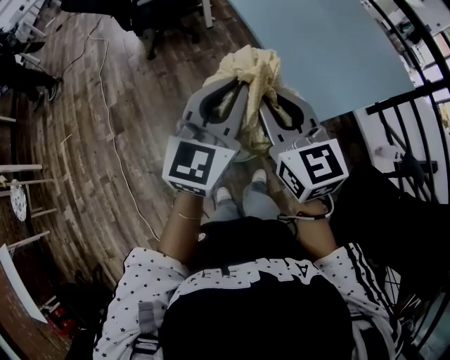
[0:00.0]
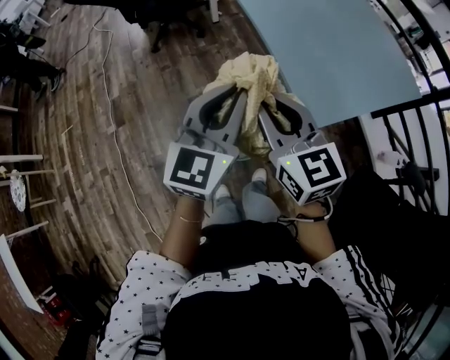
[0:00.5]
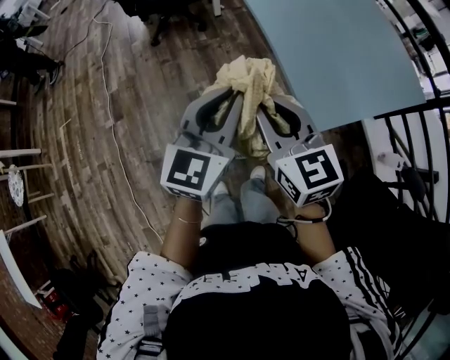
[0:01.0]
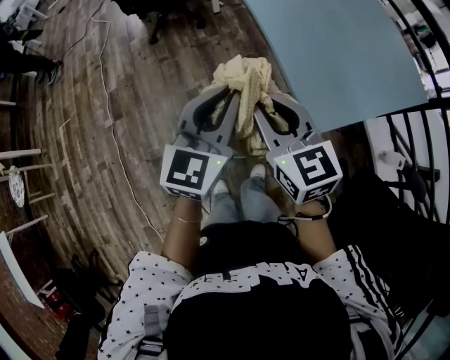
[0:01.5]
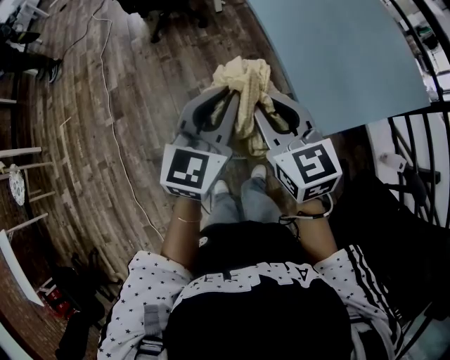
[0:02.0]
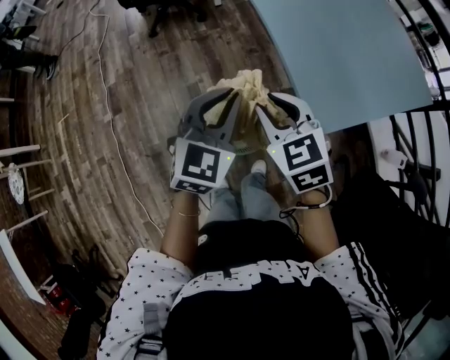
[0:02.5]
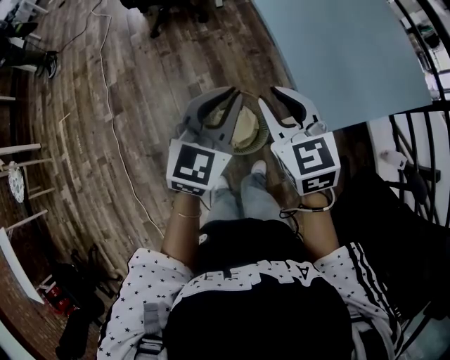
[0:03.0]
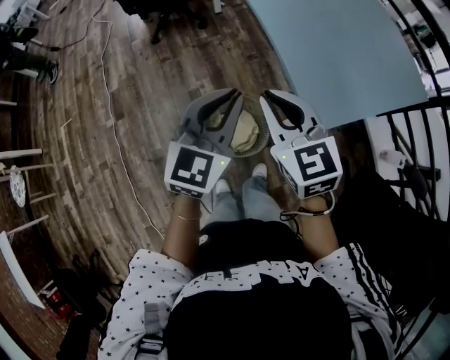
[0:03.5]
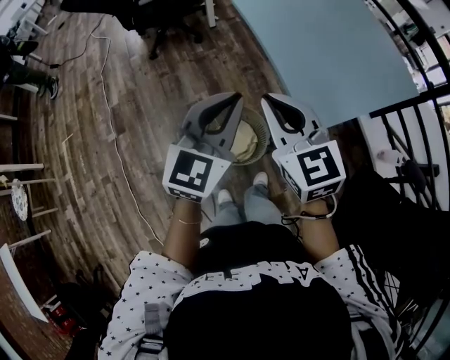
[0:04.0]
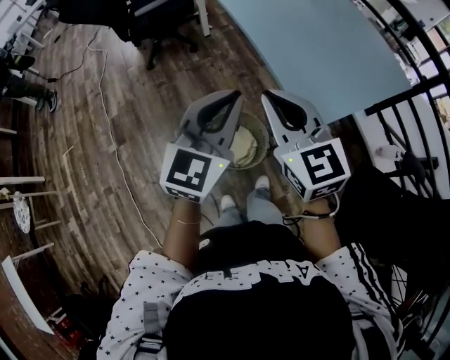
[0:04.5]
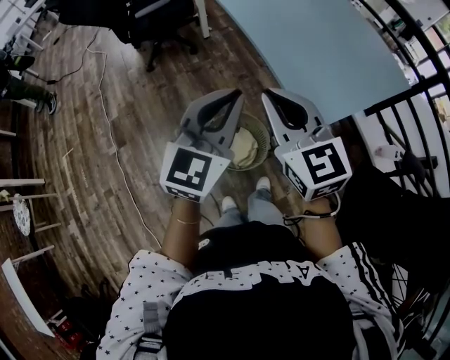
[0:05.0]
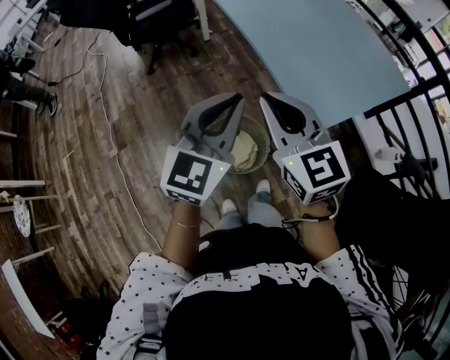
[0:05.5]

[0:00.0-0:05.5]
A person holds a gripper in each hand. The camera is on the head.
0:00.0 to 0:02.0: The two grippers go some 10 cm downward and forward.
0:02.0 to 0:03.5: The grippers move only a little.
0:03.5 to 0:05.5: Both grippers move upward, some 10 cm.

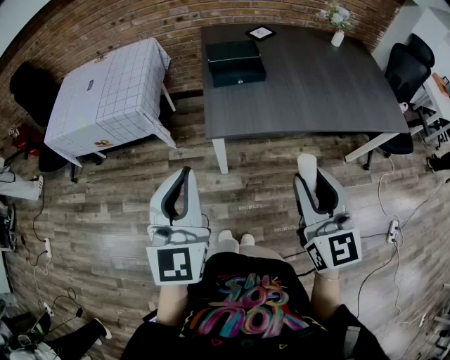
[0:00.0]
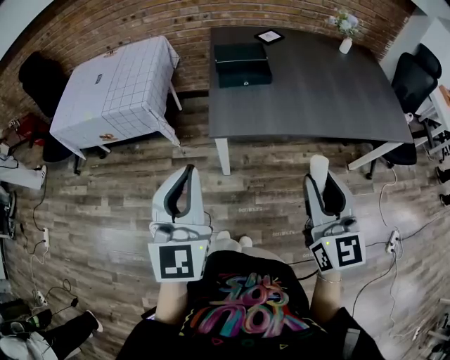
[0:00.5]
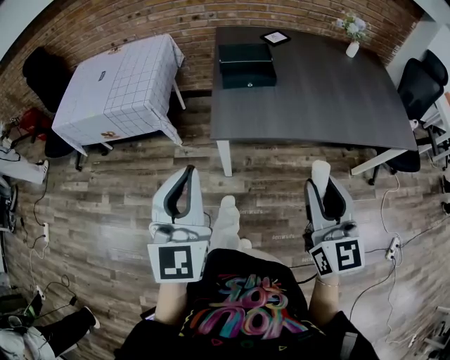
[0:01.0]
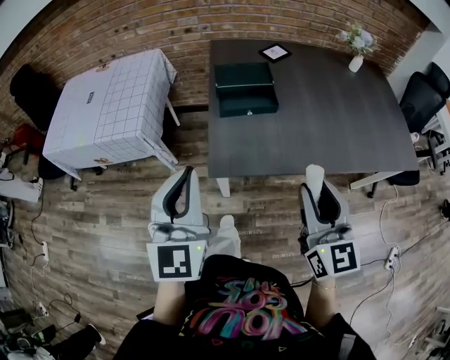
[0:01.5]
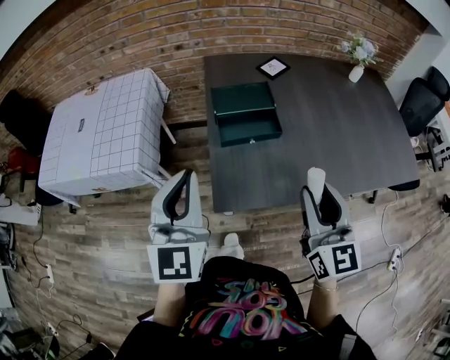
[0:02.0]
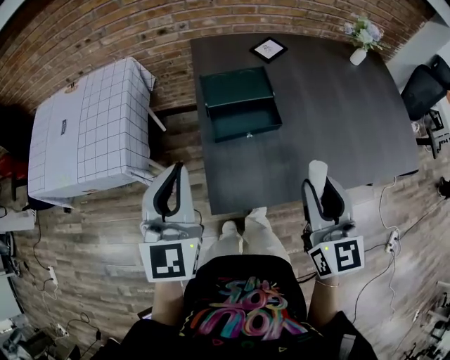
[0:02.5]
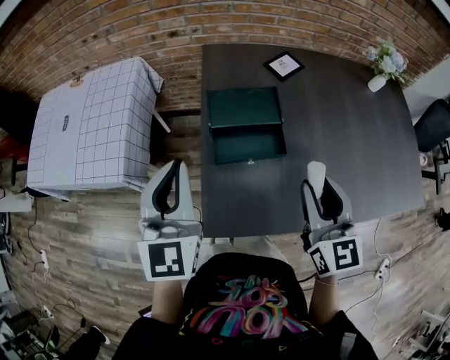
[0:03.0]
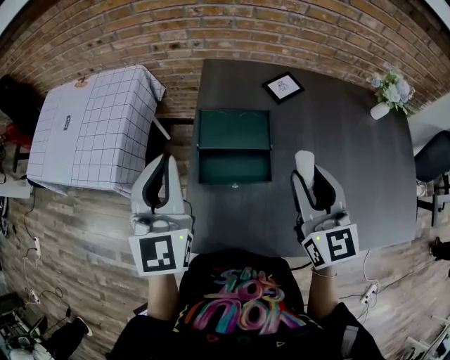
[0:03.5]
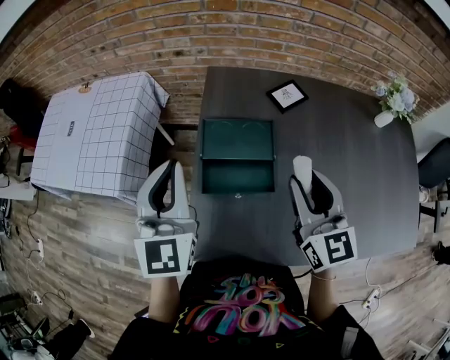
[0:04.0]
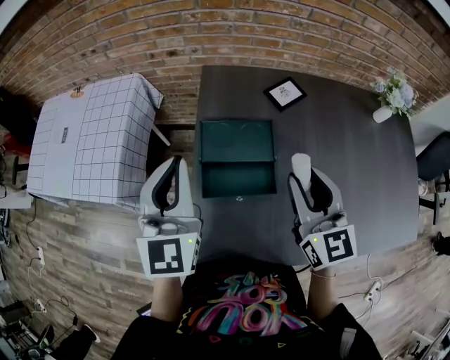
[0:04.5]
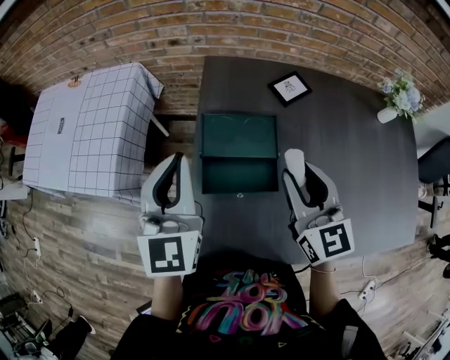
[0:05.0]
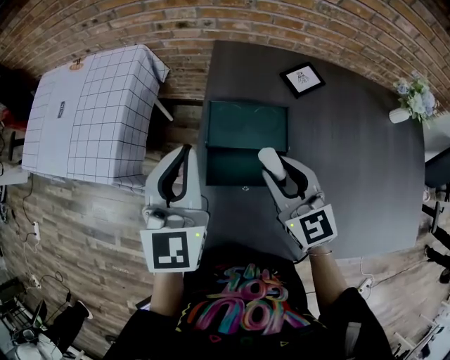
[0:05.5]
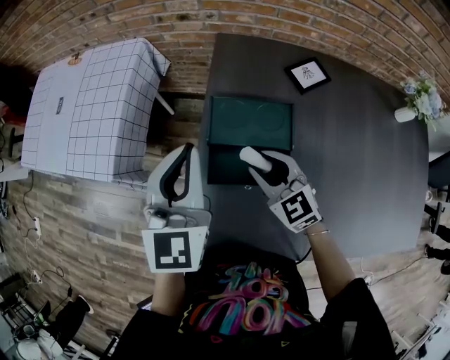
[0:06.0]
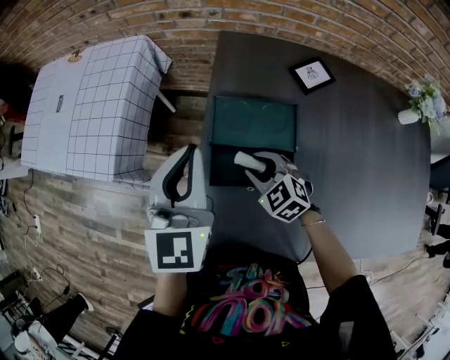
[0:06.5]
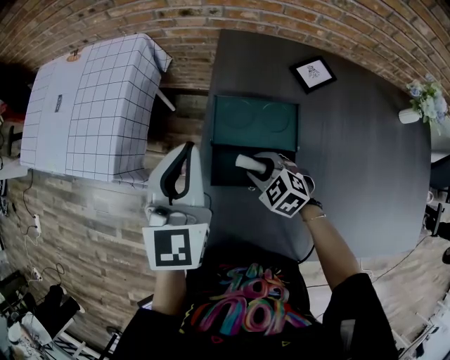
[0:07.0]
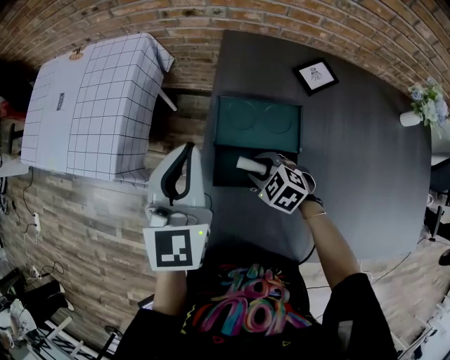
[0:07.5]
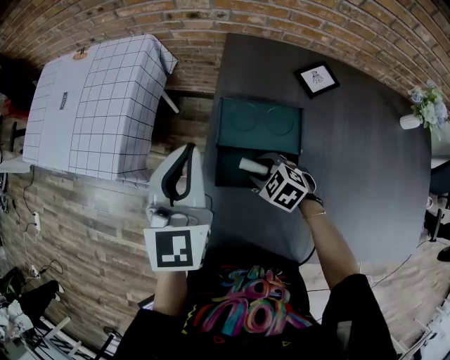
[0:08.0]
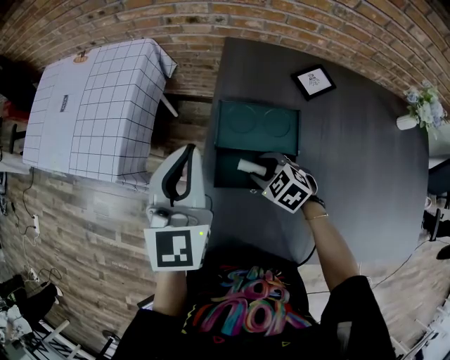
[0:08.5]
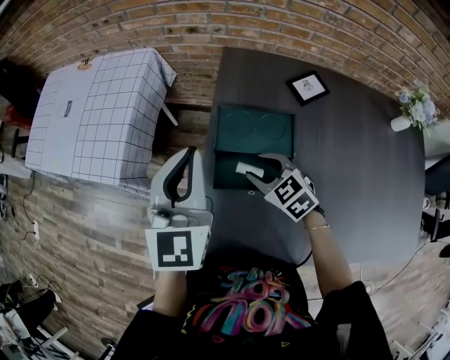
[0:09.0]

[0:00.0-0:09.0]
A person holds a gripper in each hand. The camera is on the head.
0:00.0 to 0:02.0: Both grippers move forward, some 25 cm.
0:02.0 to 0:04.5: The grippers both shift forward by roughly 25 cm.
0:04.5 to 0:07.0: The left gripper goes approximately 5 cm downward. The right gripper moves downward and to the left, some 30 cm, and tilts its fingers some 40 degrees downward.
0:07.0 to 0:09.0: The right gripper heads upward, covering roughly 5 cm.

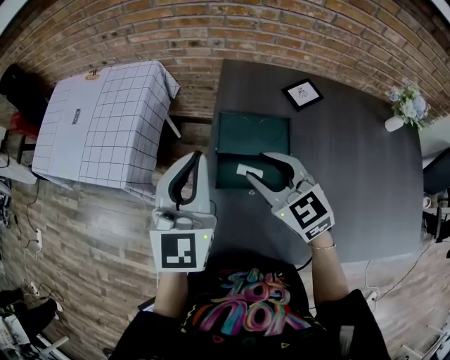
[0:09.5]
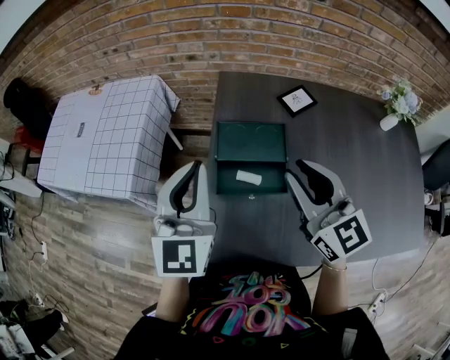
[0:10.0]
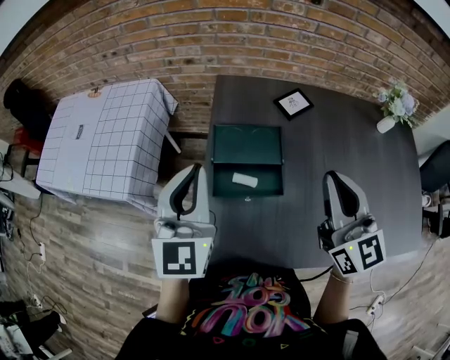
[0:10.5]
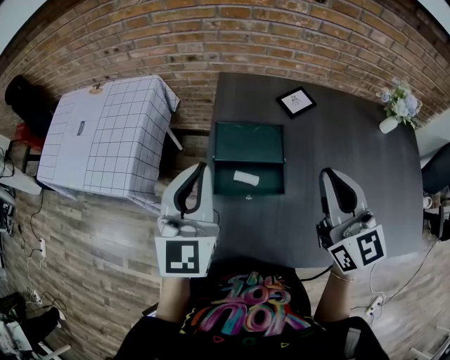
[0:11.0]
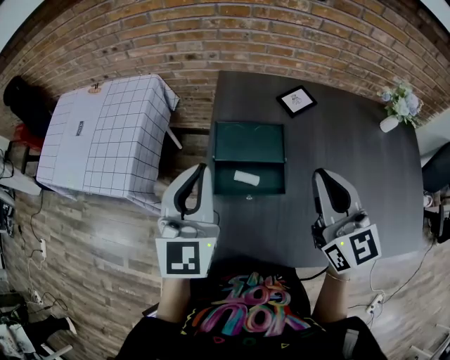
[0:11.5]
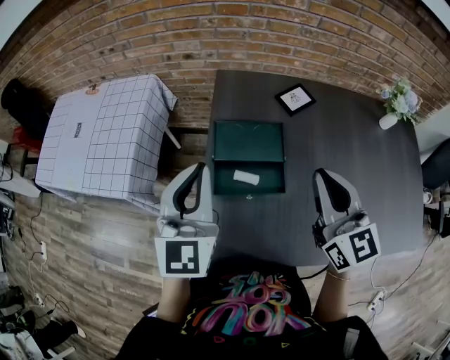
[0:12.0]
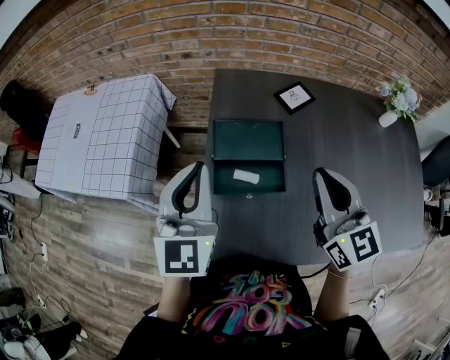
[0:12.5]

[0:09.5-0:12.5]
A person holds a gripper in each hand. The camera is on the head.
0:09.5 to 0:11.0: The right gripper goes roughly 20 cm to the right, upward and backward, turns by roughly 30 degrees, and closes up.
0:11.0 to 0:12.5: The grippers stay close to where they were, moving slightly.

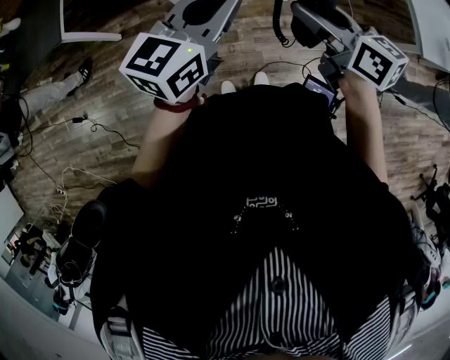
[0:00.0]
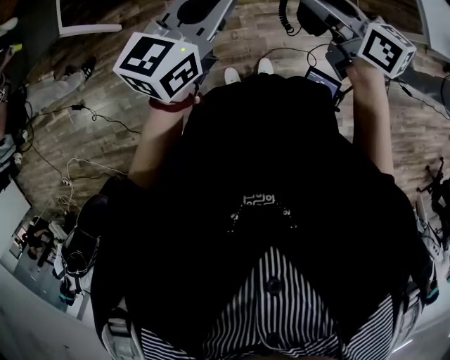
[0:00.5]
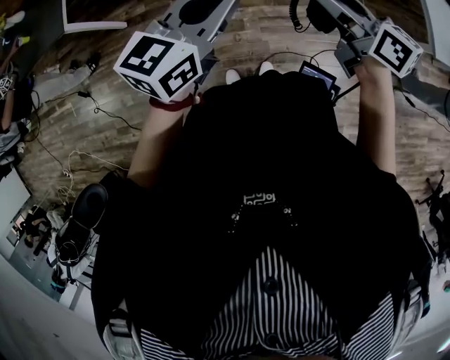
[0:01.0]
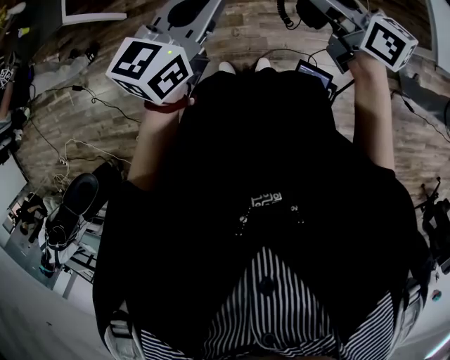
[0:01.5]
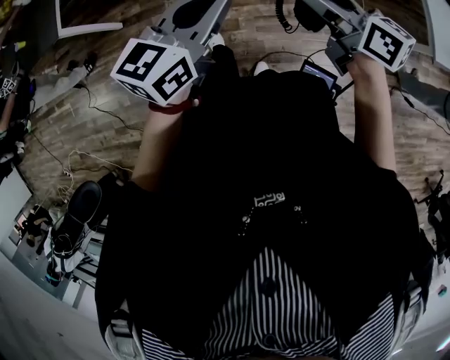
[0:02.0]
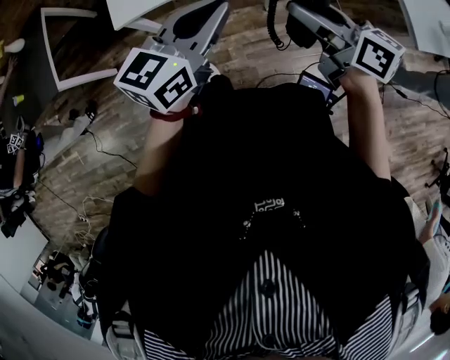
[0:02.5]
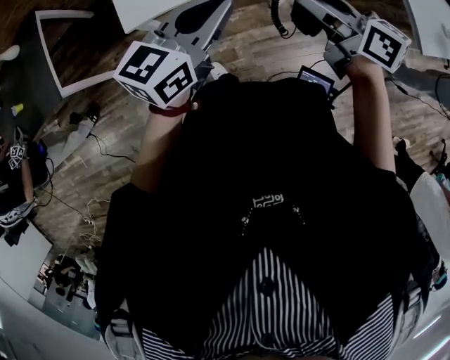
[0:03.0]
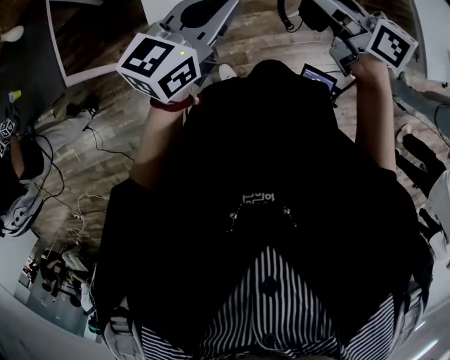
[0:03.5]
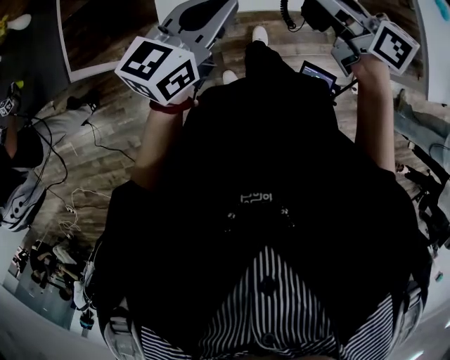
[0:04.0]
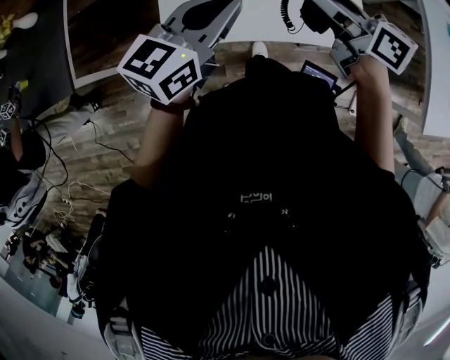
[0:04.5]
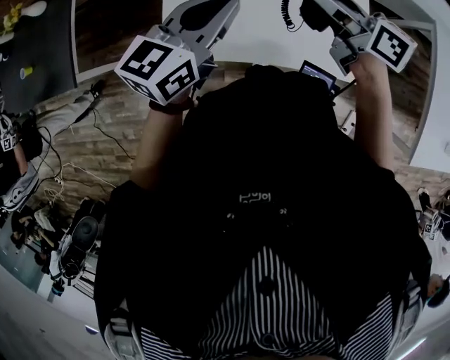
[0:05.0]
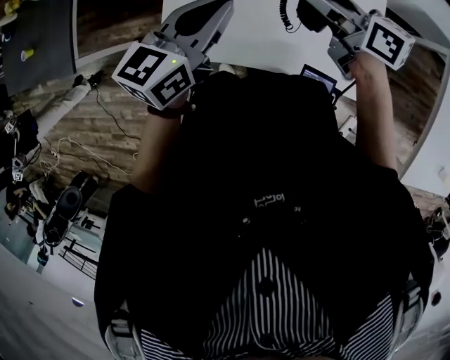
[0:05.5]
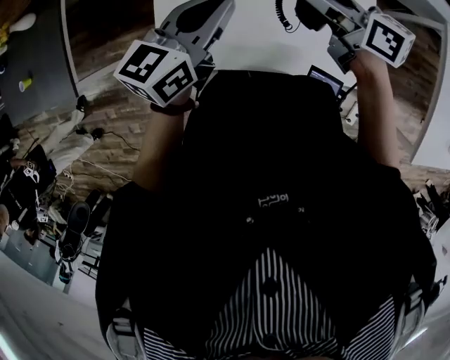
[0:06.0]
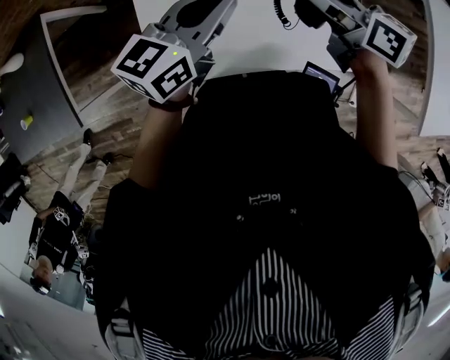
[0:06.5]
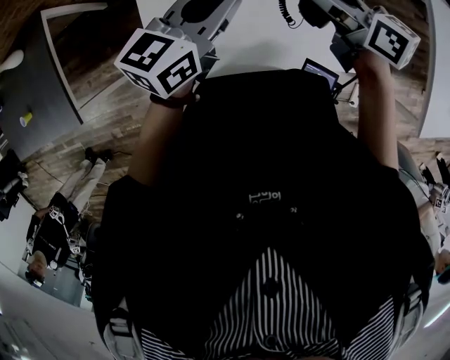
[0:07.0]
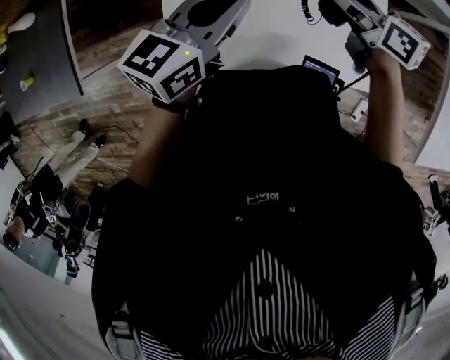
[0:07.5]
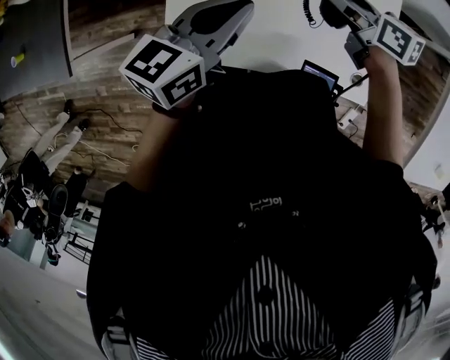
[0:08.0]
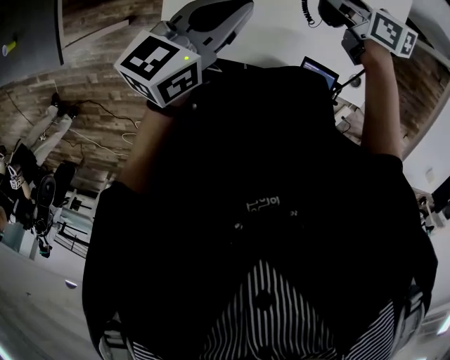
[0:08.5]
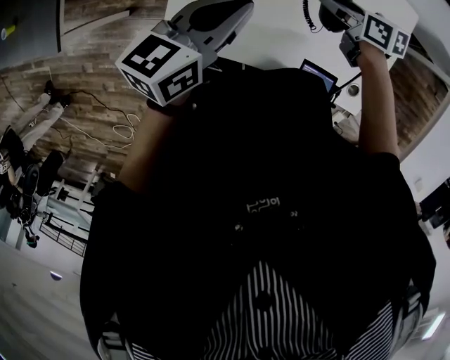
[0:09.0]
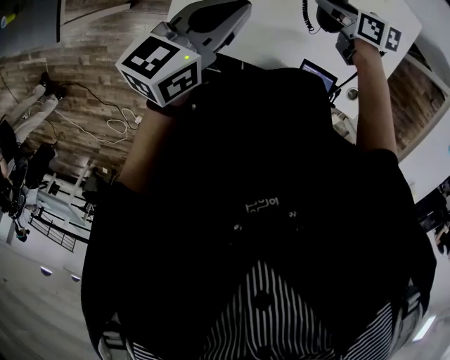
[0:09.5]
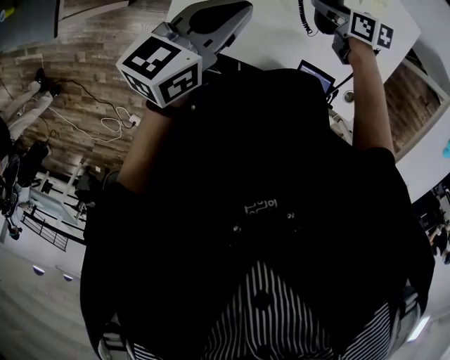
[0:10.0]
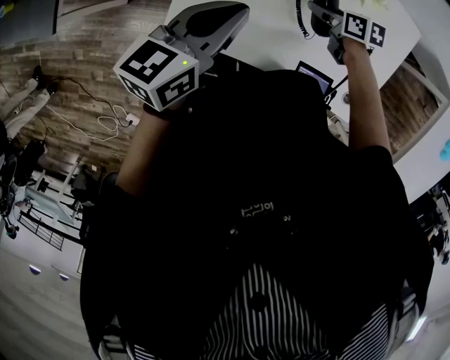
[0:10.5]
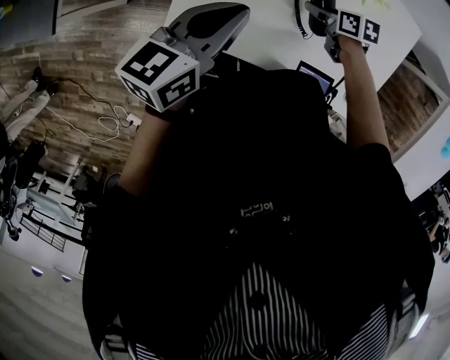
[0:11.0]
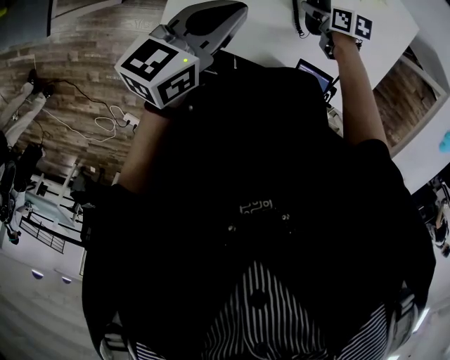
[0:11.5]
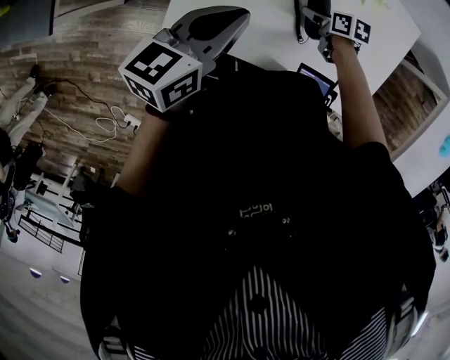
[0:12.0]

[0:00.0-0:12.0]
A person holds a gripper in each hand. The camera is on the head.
0:00.0 to 0:02.0: The two grippers go about 10 cm to the right.
0:02.0 to 0:04.0: The left gripper travels downward by roughly 10 cm, while the right gripper shifts approximately 10 cm downward and to the right.
0:06.0 to 0:08.0: The left gripper changes place by about 5 cm.
0:08.0 to 0:10.0: The left gripper moves about 5 cm. Meanwhile the right gripper goes about 15 cm downward, and rotates about 20 degrees.
0:10.0 to 0:12.0: The right gripper is displaced downward by approximately 10 cm.
